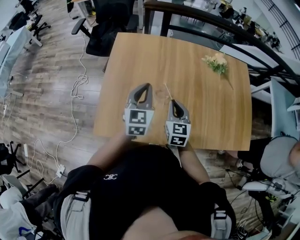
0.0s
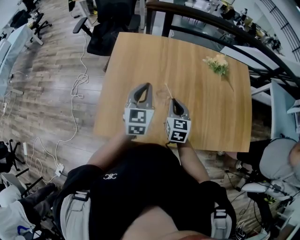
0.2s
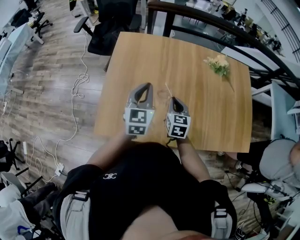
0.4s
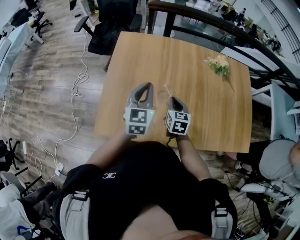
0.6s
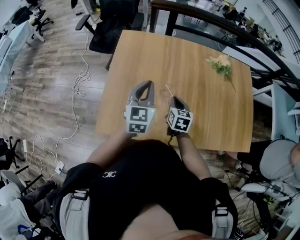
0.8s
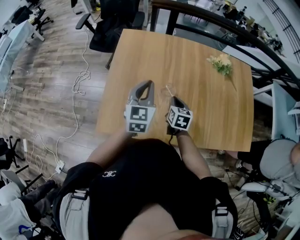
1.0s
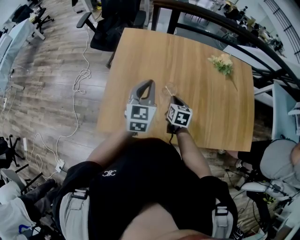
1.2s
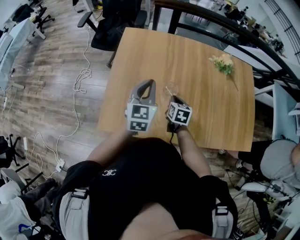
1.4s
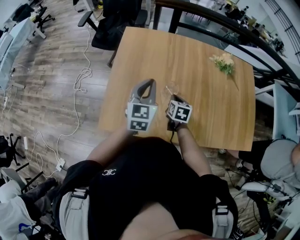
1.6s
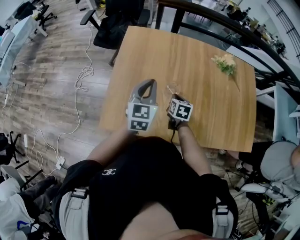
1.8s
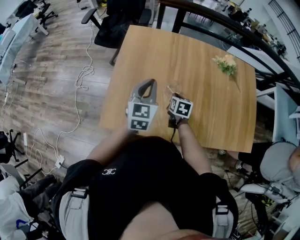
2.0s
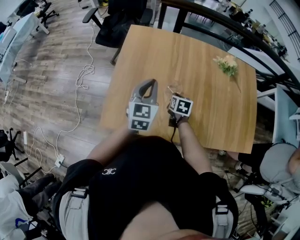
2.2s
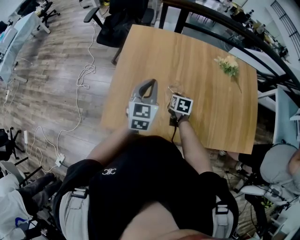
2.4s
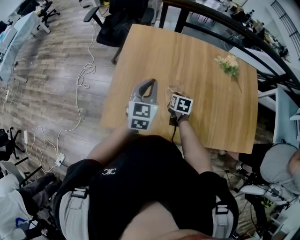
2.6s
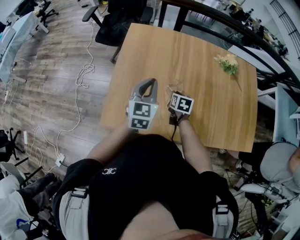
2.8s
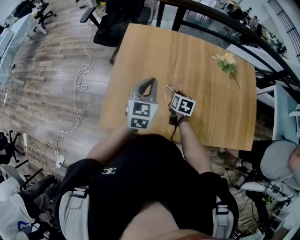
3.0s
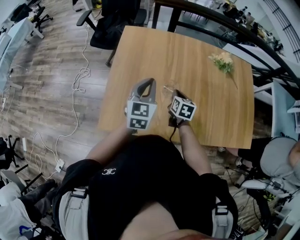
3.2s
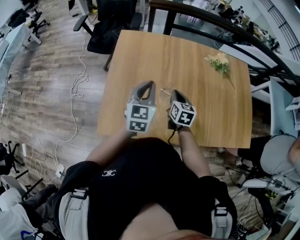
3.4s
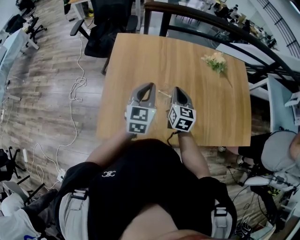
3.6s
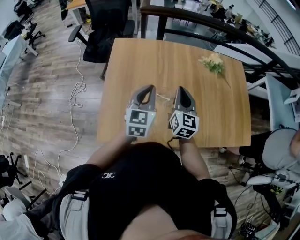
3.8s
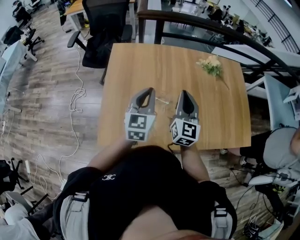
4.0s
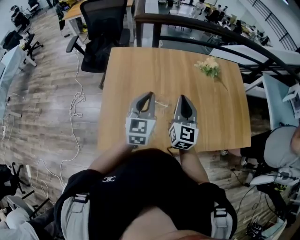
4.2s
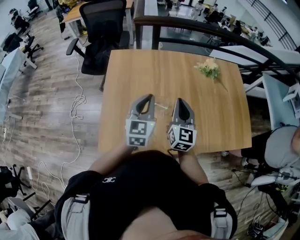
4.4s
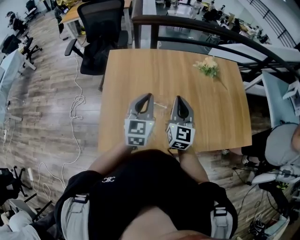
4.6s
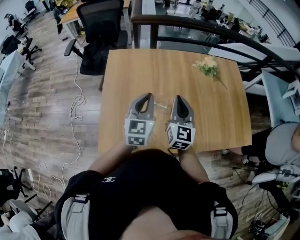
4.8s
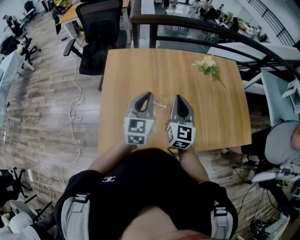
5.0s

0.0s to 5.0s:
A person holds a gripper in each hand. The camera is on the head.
0.0s to 1.6s: The right gripper moves downward, roughly 10 cm, and changes its angle by approximately 30 degrees.
1.6s to 3.4s: The right gripper moves upward, approximately 5 cm.
3.4s to 5.0s: The right gripper is displaced upward by about 15 cm, and swivels roughly 30 degrees.

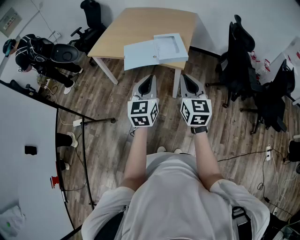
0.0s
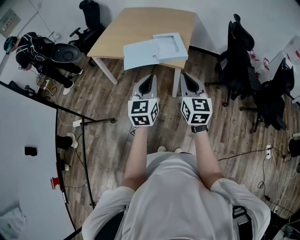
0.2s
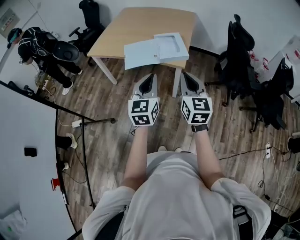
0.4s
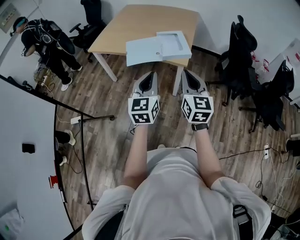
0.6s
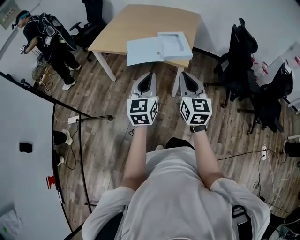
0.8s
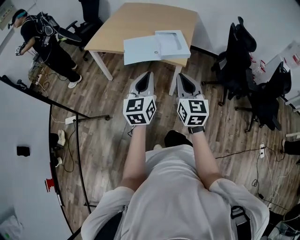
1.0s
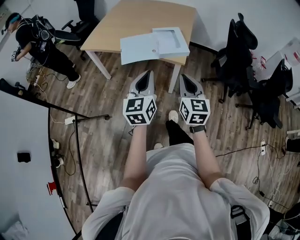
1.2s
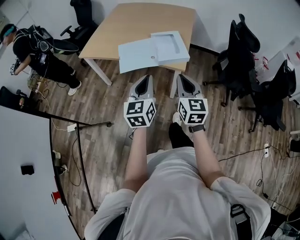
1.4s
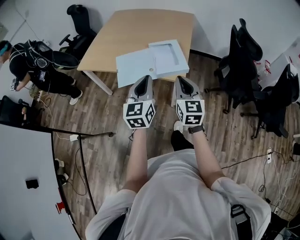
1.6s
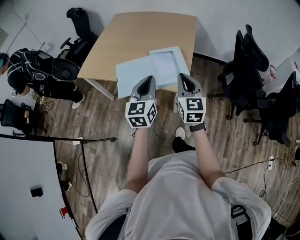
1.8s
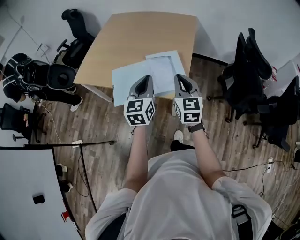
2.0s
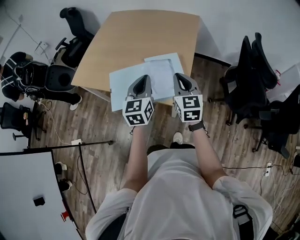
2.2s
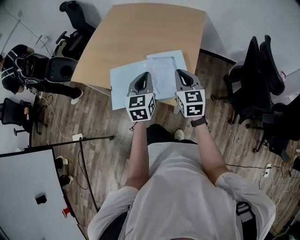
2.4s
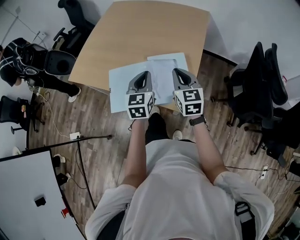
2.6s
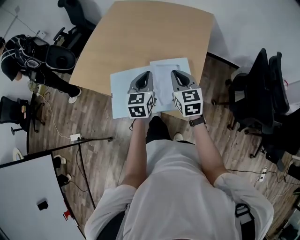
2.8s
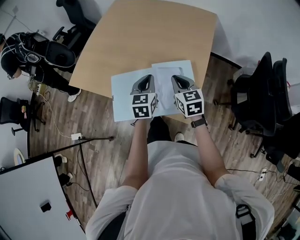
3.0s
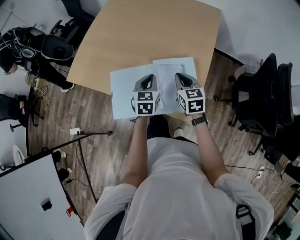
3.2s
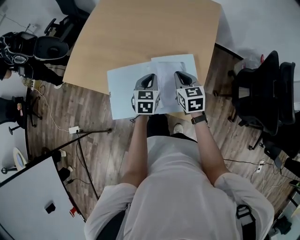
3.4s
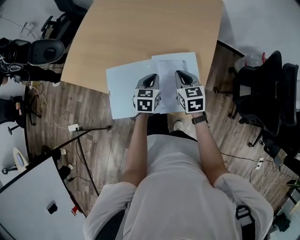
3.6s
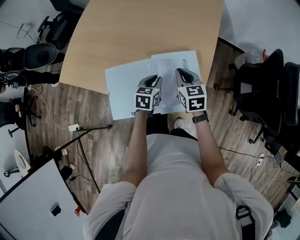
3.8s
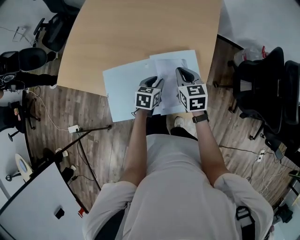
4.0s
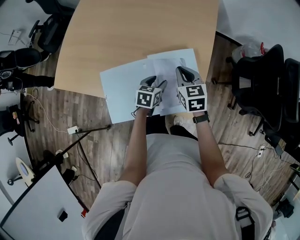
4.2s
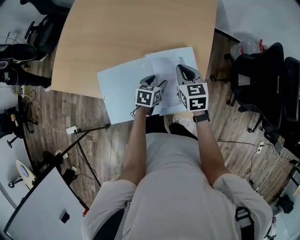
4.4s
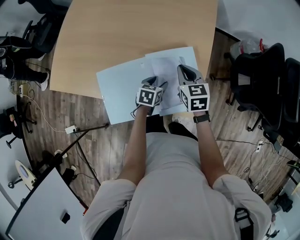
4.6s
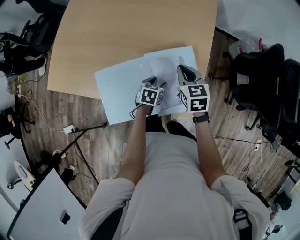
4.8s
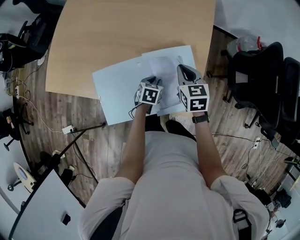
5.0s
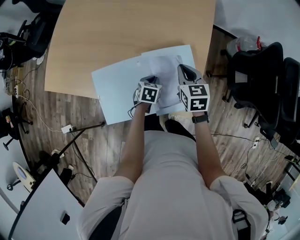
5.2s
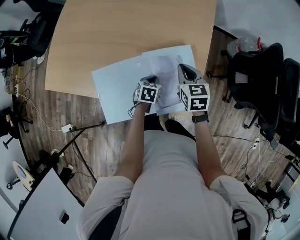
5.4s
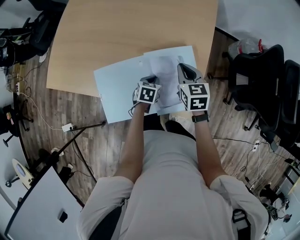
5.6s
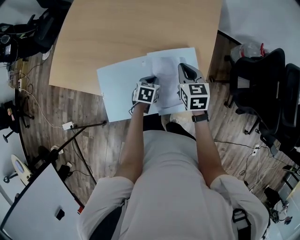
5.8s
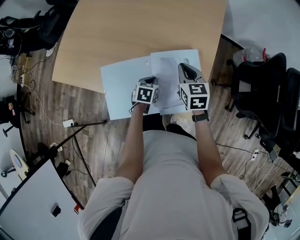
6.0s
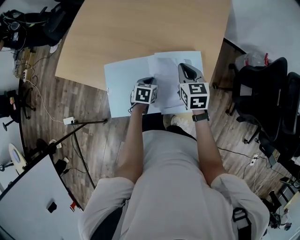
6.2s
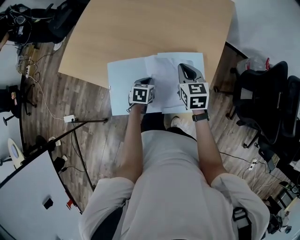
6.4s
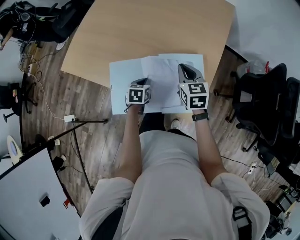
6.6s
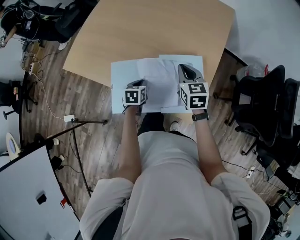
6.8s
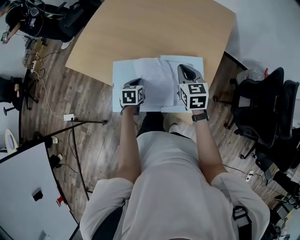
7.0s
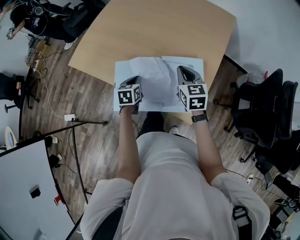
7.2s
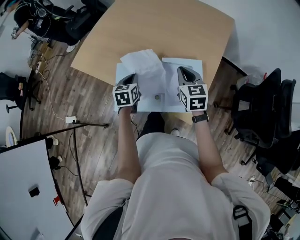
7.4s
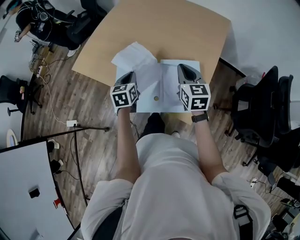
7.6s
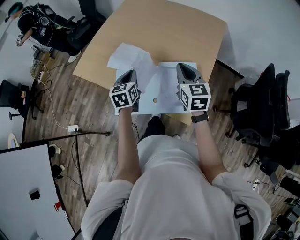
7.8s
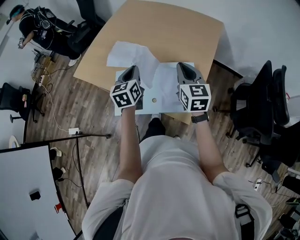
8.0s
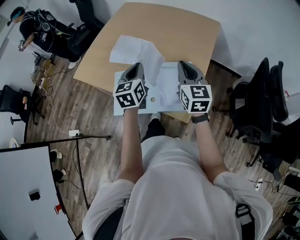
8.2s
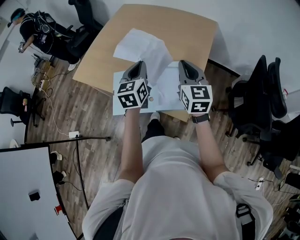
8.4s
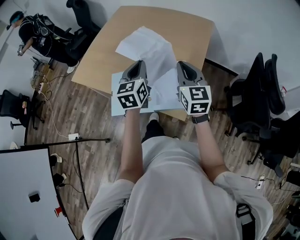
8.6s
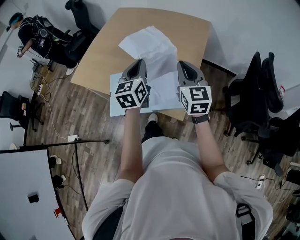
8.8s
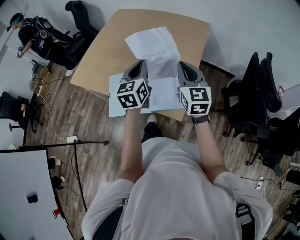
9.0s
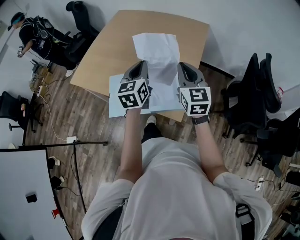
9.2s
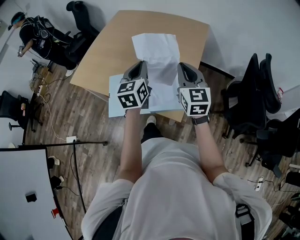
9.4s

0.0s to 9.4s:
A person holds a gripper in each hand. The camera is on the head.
0.0s to 1.6s: Both grippers move forward, some 15 cm.
1.6s to 3.2s: The left gripper is displaced forward and downward by some 40 cm, and turns by approximately 30 degrees. Meanwhile the right gripper shifts some 40 cm forward, and swivels roughly 30 degrees.
3.2s to 4.8s: The left gripper travels downward by about 20 cm, swivels approximately 40 degrees, and opens its fingers, while the right gripper shifts some 5 cm downward.
4.8s to 6.2s: The left gripper heads to the left, covering roughly 5 cm, and closes up.
6.2s to 7.8s: The right gripper goes about 15 cm upward. The left gripper heads upward and to the left, covering some 25 cm, and changes its angle by about 40 degrees.
7.8s to 9.4s: The right gripper heads backward, upward and to the right, covering about 10 cm; the left gripper shifts approximately 20 cm to the right and upward.

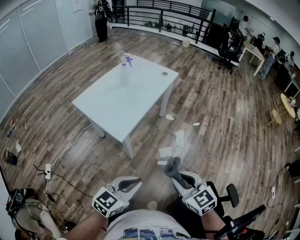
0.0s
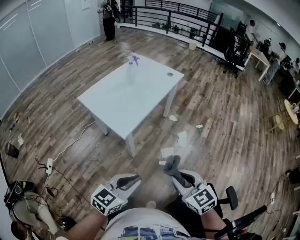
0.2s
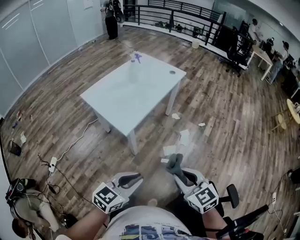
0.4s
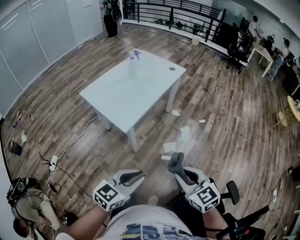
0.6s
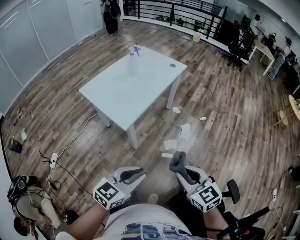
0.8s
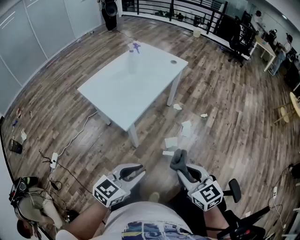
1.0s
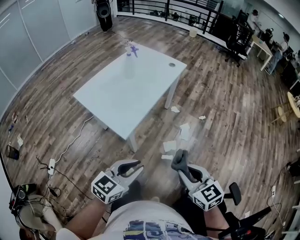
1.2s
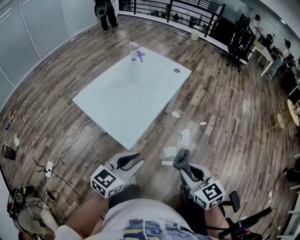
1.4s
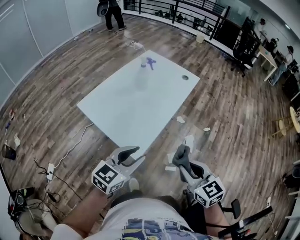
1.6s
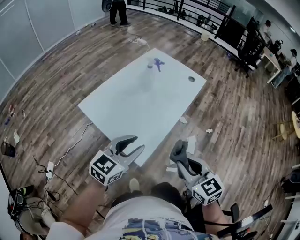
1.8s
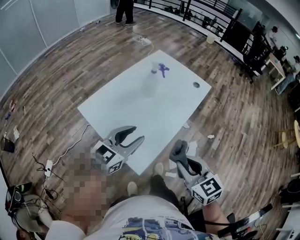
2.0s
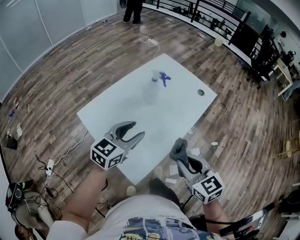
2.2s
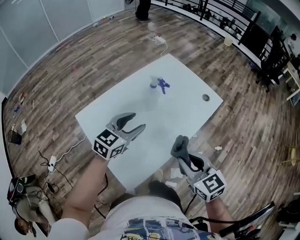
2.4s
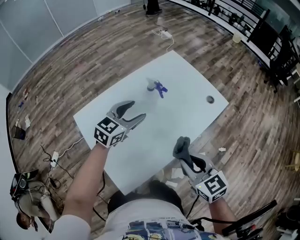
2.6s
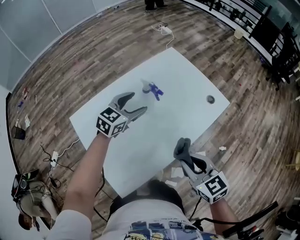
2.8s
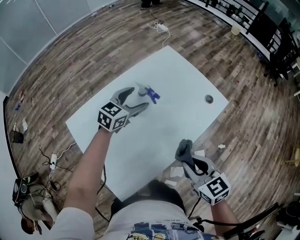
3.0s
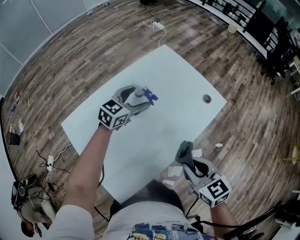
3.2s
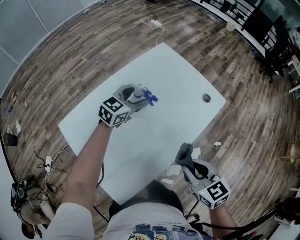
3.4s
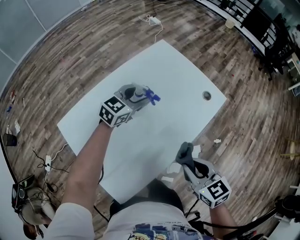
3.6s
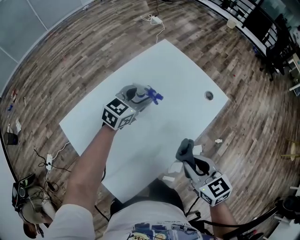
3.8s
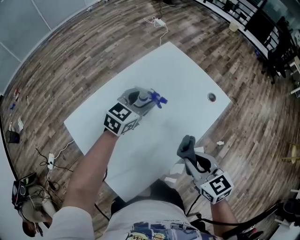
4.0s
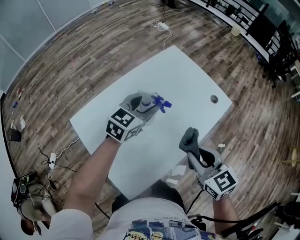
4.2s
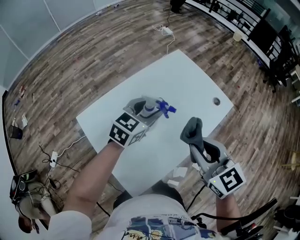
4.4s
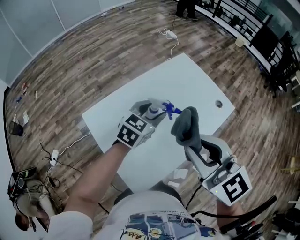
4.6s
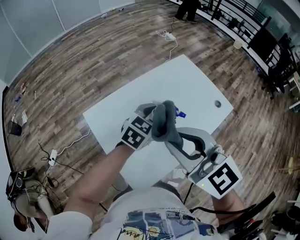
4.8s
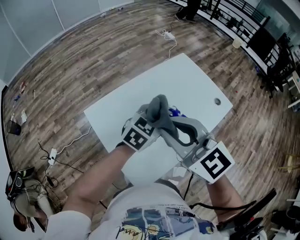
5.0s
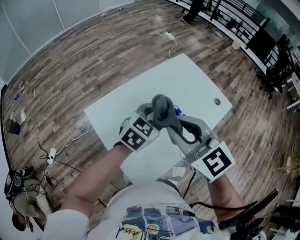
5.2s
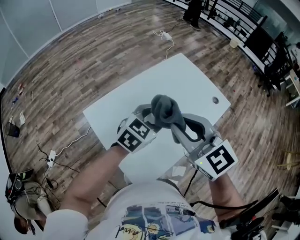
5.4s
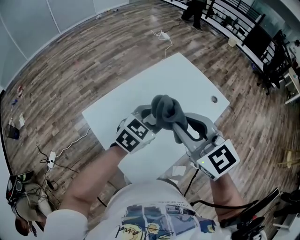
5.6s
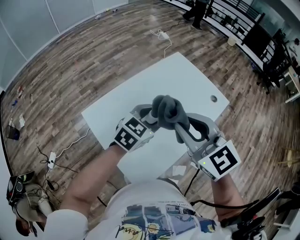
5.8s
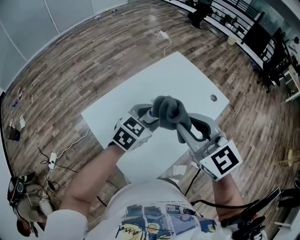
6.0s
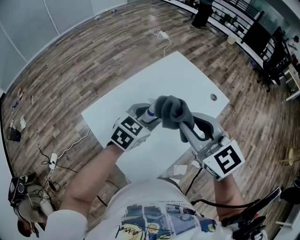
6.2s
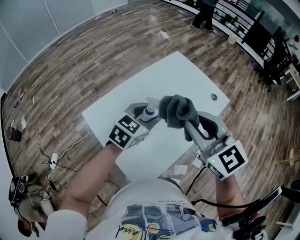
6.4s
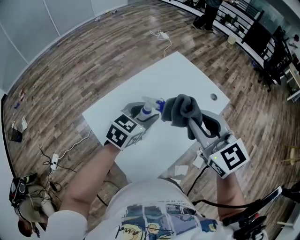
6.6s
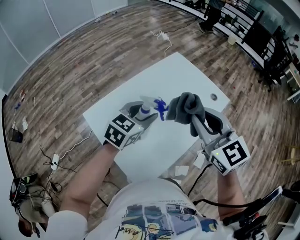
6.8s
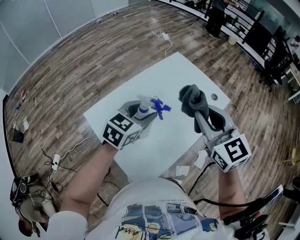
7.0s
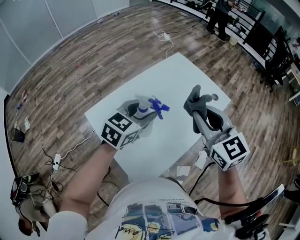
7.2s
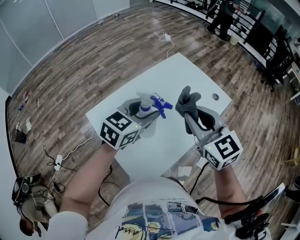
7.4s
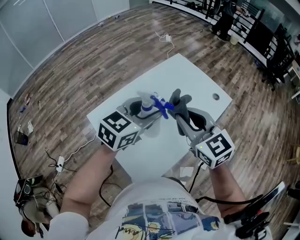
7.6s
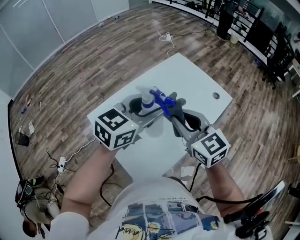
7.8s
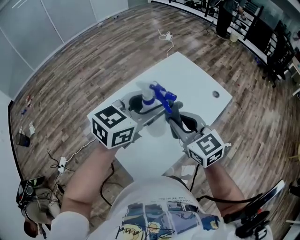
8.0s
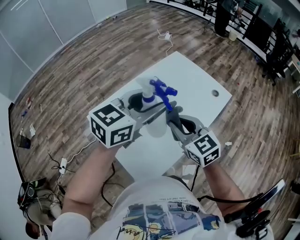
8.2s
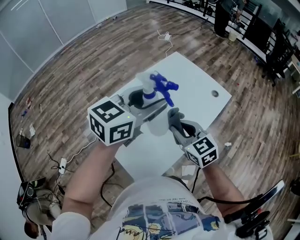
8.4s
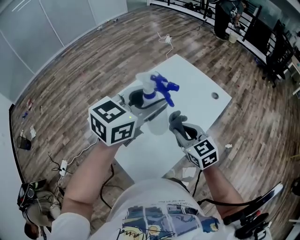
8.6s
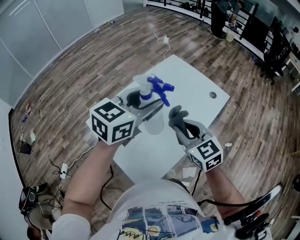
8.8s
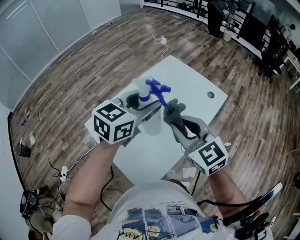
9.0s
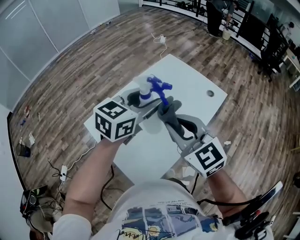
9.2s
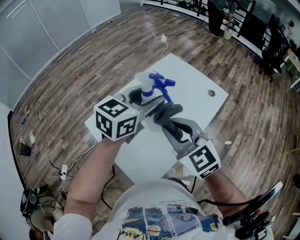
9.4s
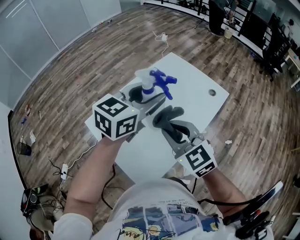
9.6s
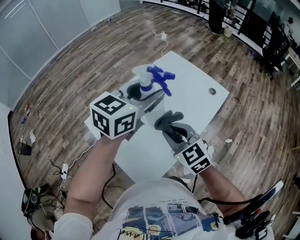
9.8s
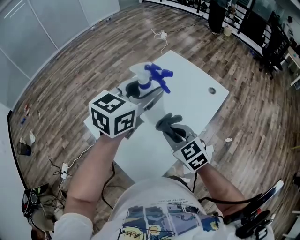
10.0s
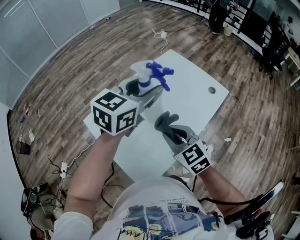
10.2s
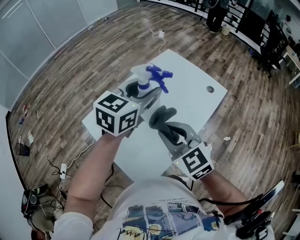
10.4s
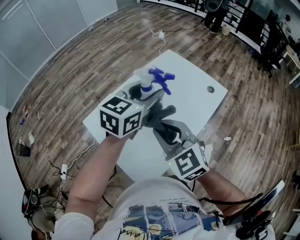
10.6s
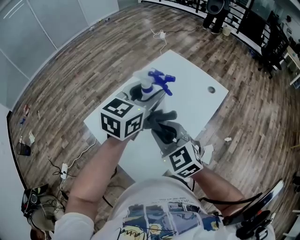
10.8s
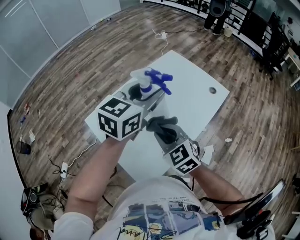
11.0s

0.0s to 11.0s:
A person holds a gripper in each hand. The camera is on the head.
0.0s to 1.6s: Both grippers move forward and to the left, some 25 cm.
1.6s to 3.2s: The right gripper moves forward, about 35 cm. The left gripper heads forward, covering approximately 50 cm, and opens.
3.2s to 4.8s: The left gripper shifts about 15 cm backward and upward, and closes its fingers, while the right gripper shifts some 30 cm upward and to the left, and swivels roughly 40 degrees.
4.8s to 6.2s: The right gripper moves to the right, about 5 cm.
6.2s to 7.8s: The left gripper travels upward by about 10 cm. Meanwhile the right gripper shifts roughly 5 cm downward, and travels to the right and back again, about 5 cm each way.
7.8s to 9.4s: The right gripper moves about 10 cm downward and comes back. Meanwhile the left gripper ends up some 5 cm from where it was.
9.4s to 11.0s: The right gripper swings up and down, some 10 cm each way, with 2 reversals.
